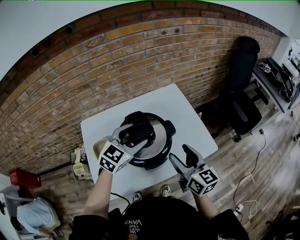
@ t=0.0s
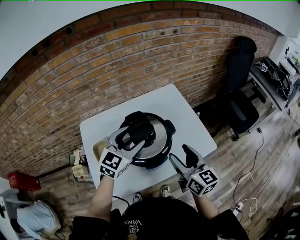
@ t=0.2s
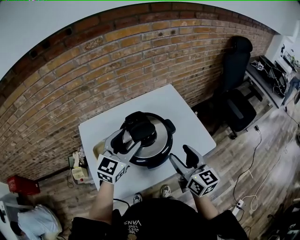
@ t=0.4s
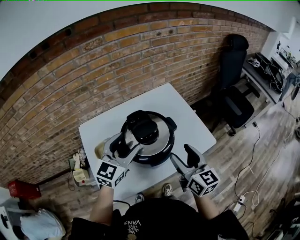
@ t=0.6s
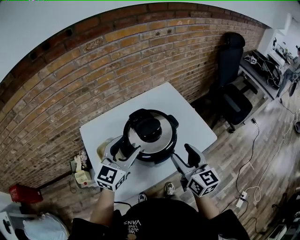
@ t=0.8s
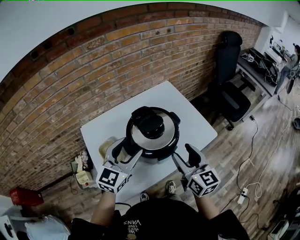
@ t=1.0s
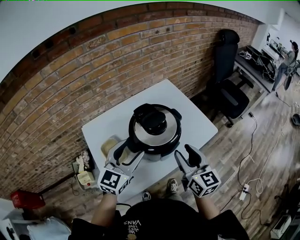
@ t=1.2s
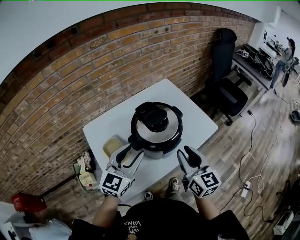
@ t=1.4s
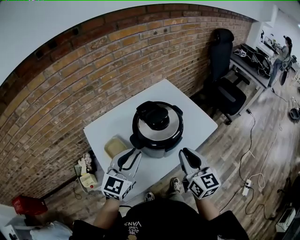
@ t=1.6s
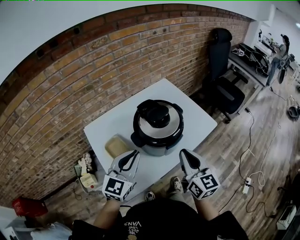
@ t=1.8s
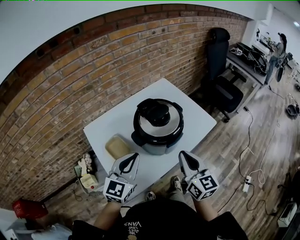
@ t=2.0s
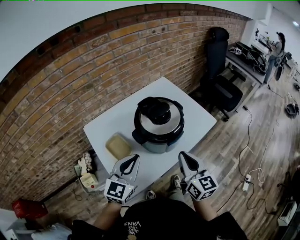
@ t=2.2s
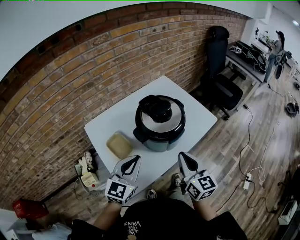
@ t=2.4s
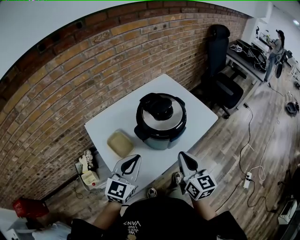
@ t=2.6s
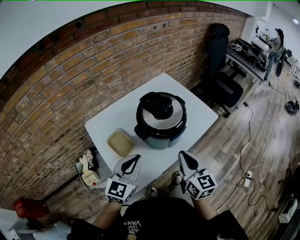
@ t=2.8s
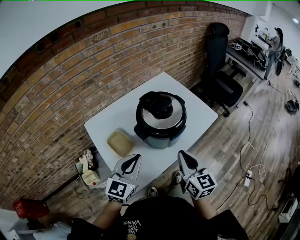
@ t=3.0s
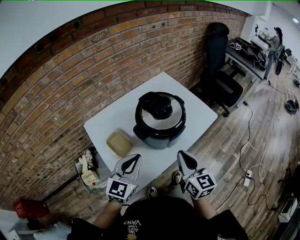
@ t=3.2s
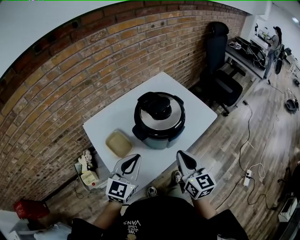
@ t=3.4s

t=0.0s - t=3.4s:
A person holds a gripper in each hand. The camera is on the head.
t=0.0s - t=1.6s: Both grippers move backward and to the left, some 15 cm. The left gripper closes, while the right gripper rotates approximately 20 degrees, and closes.
t=1.6s - t=3.4s: The left gripper ends up roughly 5 cm from where it was. The right gripper ends up roughly 5 cm from where it was.

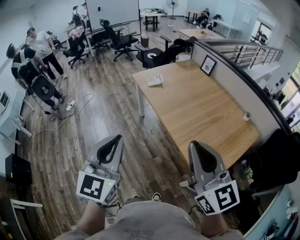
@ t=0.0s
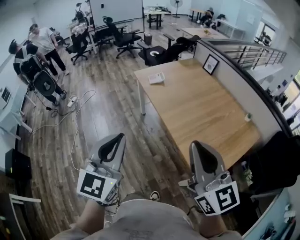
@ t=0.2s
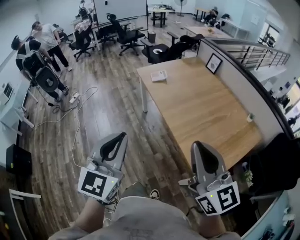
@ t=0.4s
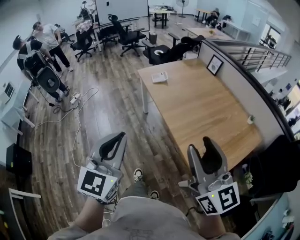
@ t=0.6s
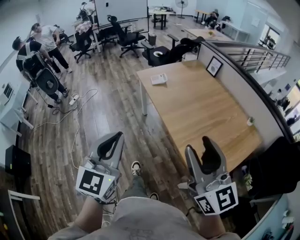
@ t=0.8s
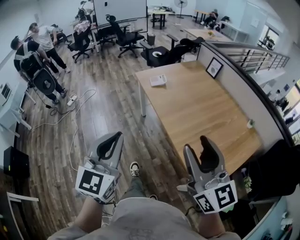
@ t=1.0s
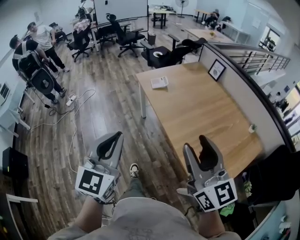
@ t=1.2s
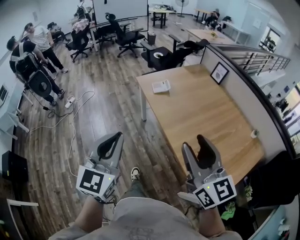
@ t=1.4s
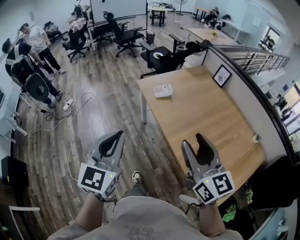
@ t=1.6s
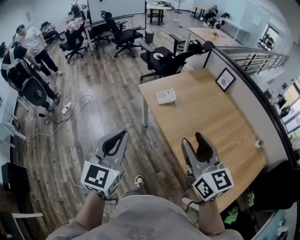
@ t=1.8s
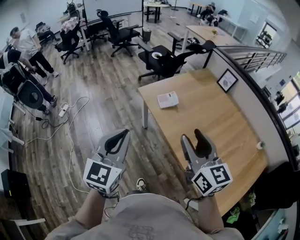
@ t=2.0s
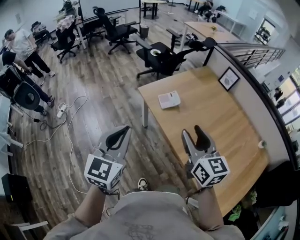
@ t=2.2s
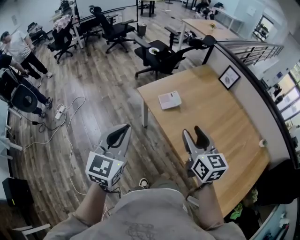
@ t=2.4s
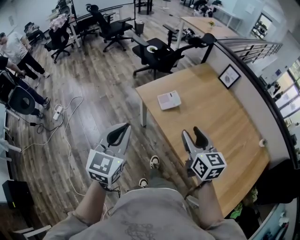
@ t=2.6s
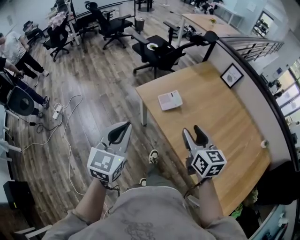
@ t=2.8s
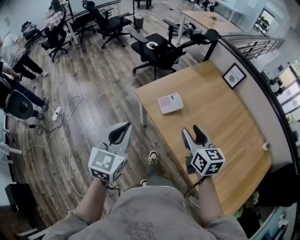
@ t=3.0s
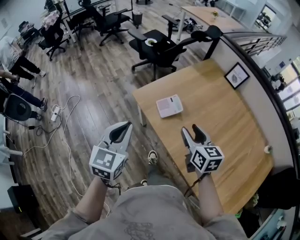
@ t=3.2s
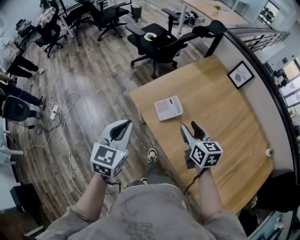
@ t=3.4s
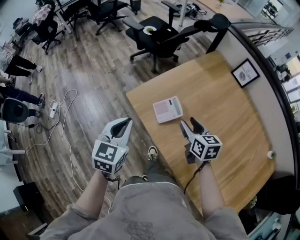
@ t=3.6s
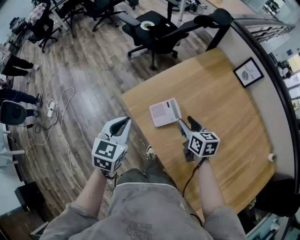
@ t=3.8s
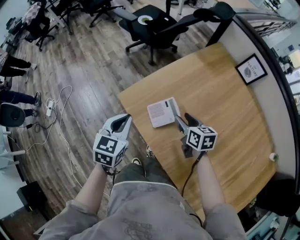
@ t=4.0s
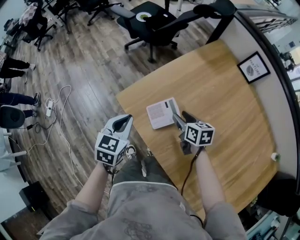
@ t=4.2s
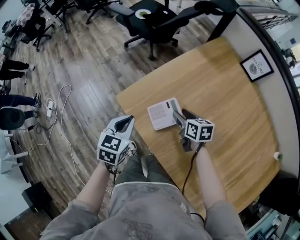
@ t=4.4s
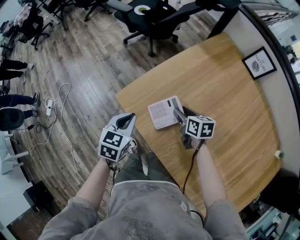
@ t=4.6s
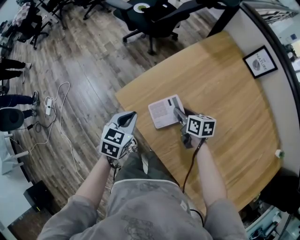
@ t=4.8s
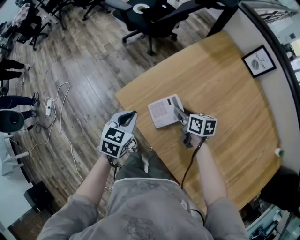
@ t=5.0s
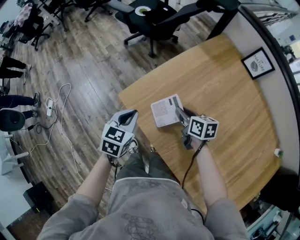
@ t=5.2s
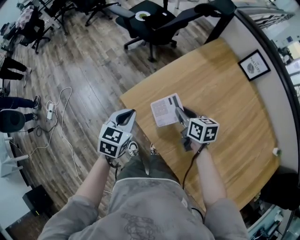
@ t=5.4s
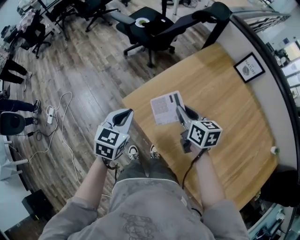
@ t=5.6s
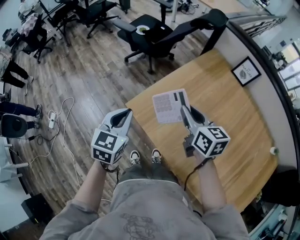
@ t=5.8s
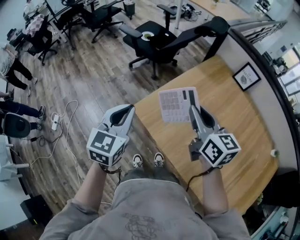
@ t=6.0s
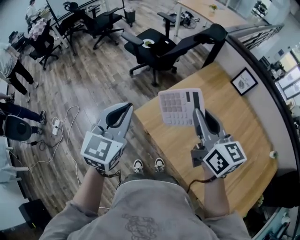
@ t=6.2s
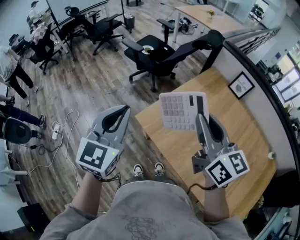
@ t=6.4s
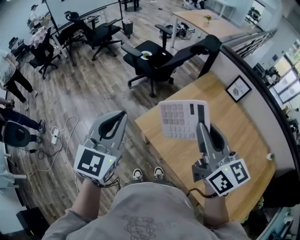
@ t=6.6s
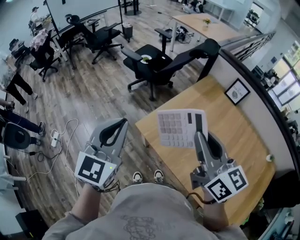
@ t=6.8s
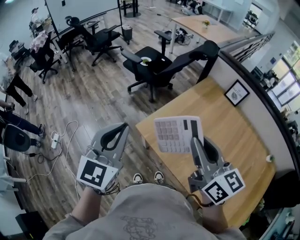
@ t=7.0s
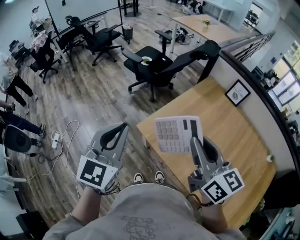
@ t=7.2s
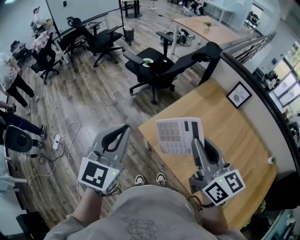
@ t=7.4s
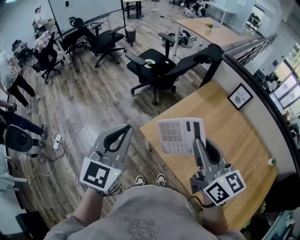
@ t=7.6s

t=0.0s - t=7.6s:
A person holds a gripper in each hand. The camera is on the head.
t=0.0s - t=1.6s: The grippers both shift forward by about 25 cm. The right gripper opens up.
t=1.6s - t=3.0s: The left gripper goes approximately 35 cm forward. The right gripper goes about 35 cm forward and downward, and changes its angle by approximately 30 degrees.
t=3.0s - t=4.6s: The grippers both shift forward and downward by roughly 40 cm. The right gripper rotates about 30 degrees. The left gripper turns by about 30 degrees.
t=4.6s - t=6.0s: Both grippers travel together upward, roughly 25 cm. The right gripper swivels approximately 30 degrees, and closes its fingers; the left gripper rotates about 20 degrees.
t=6.0s - t=7.6s: Both grippers travel together upward and backward, roughly 15 cm.

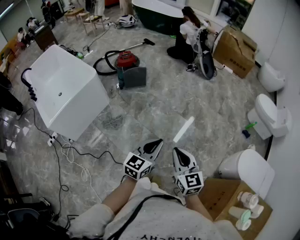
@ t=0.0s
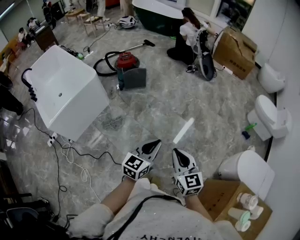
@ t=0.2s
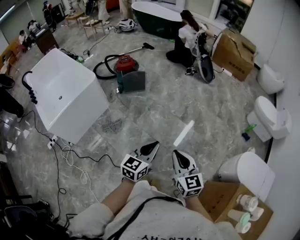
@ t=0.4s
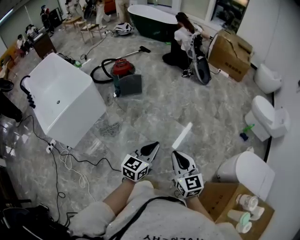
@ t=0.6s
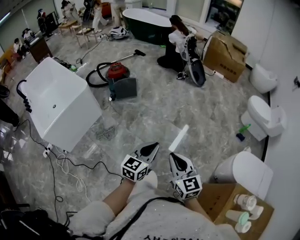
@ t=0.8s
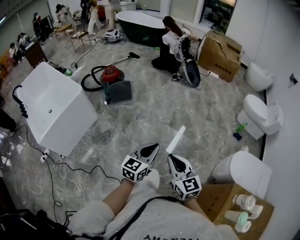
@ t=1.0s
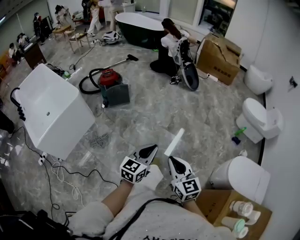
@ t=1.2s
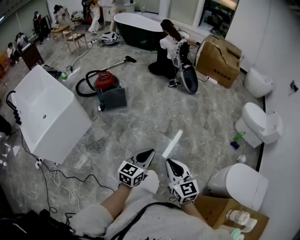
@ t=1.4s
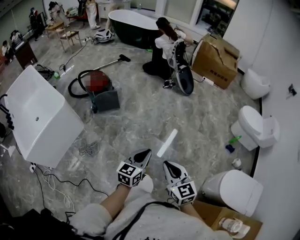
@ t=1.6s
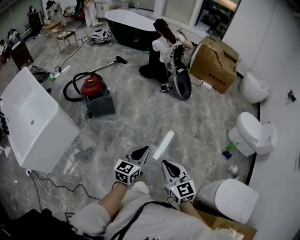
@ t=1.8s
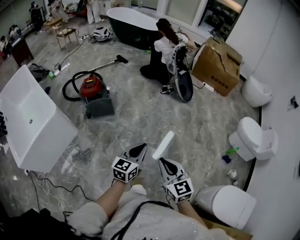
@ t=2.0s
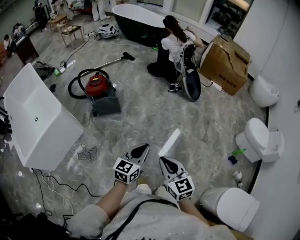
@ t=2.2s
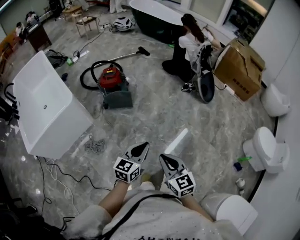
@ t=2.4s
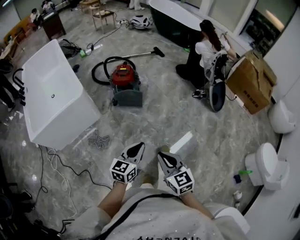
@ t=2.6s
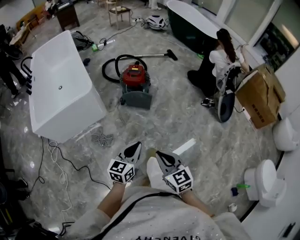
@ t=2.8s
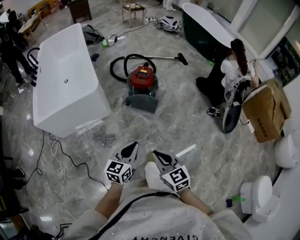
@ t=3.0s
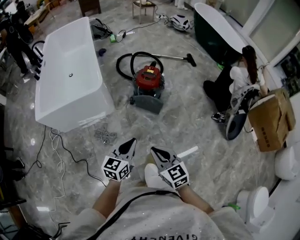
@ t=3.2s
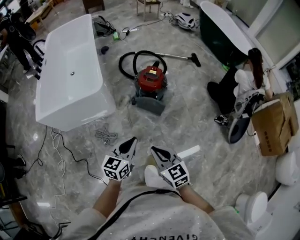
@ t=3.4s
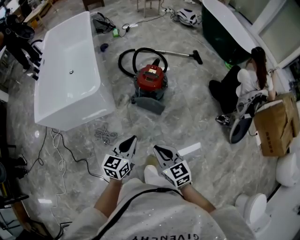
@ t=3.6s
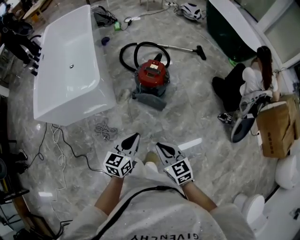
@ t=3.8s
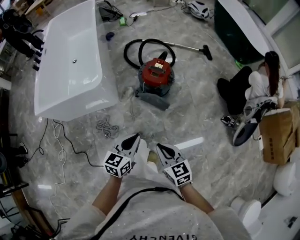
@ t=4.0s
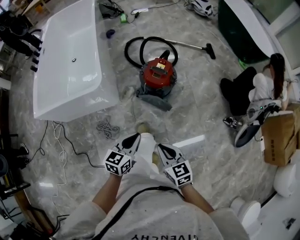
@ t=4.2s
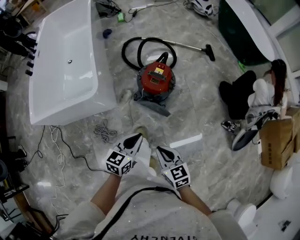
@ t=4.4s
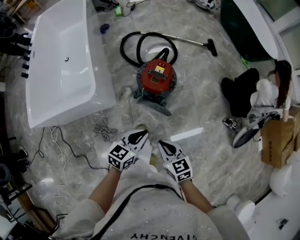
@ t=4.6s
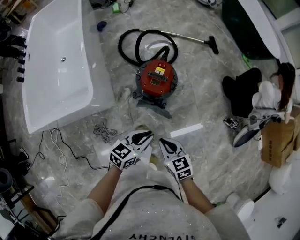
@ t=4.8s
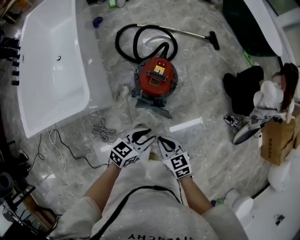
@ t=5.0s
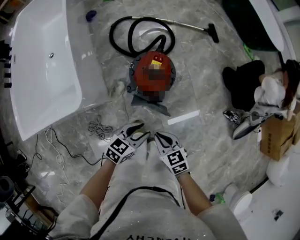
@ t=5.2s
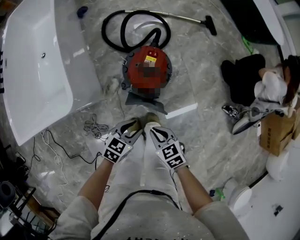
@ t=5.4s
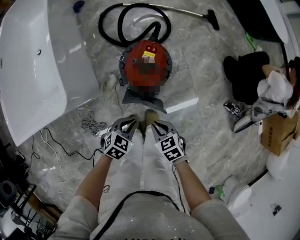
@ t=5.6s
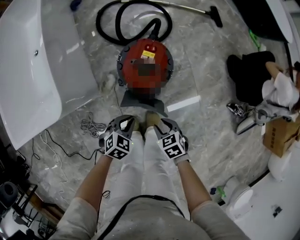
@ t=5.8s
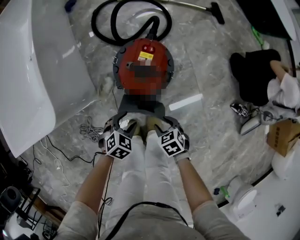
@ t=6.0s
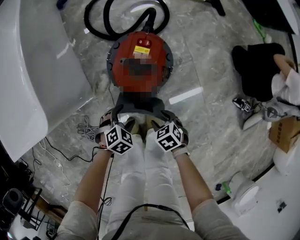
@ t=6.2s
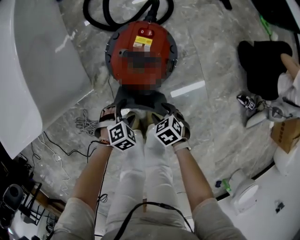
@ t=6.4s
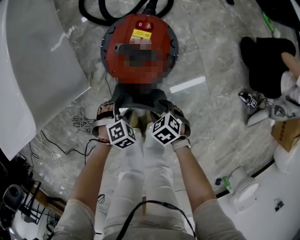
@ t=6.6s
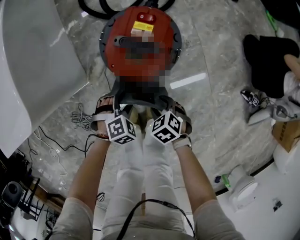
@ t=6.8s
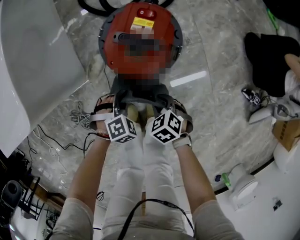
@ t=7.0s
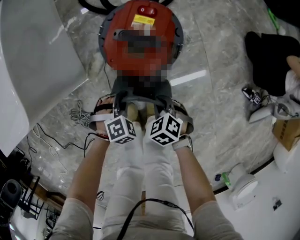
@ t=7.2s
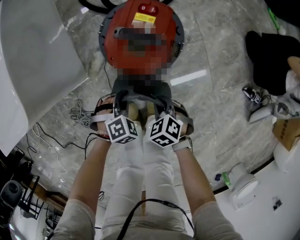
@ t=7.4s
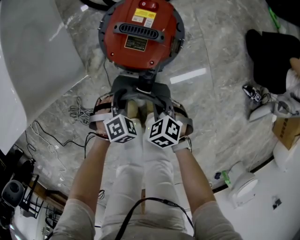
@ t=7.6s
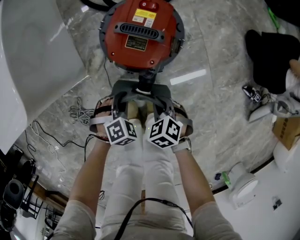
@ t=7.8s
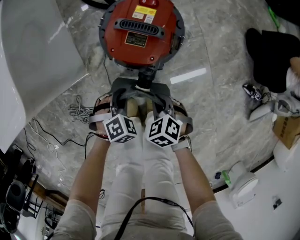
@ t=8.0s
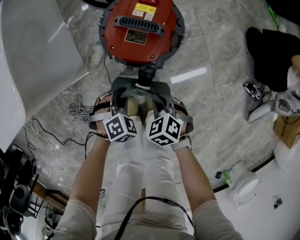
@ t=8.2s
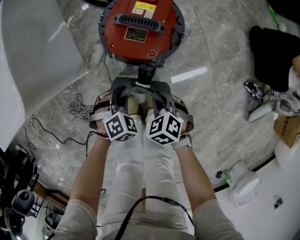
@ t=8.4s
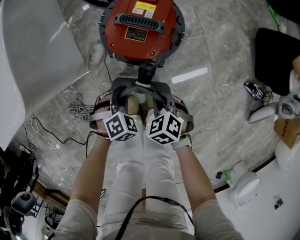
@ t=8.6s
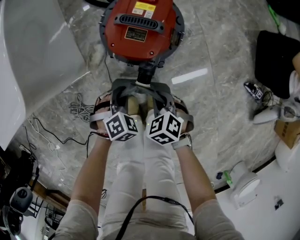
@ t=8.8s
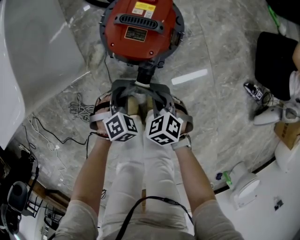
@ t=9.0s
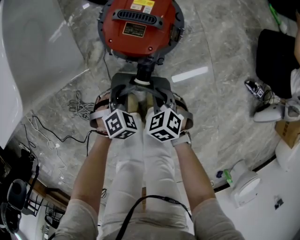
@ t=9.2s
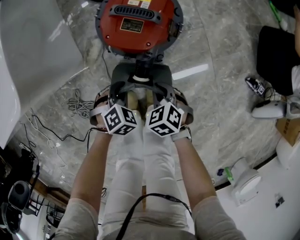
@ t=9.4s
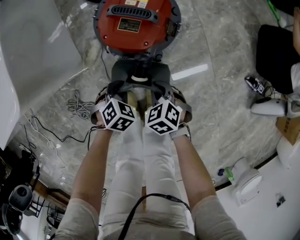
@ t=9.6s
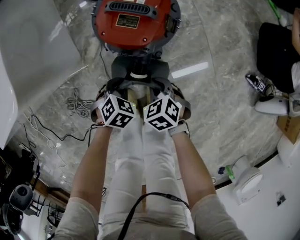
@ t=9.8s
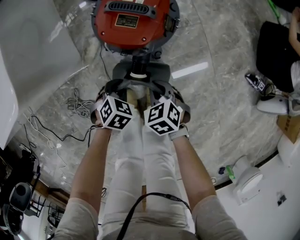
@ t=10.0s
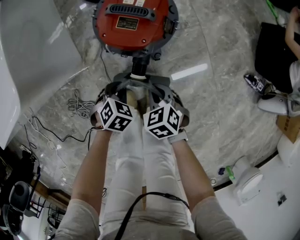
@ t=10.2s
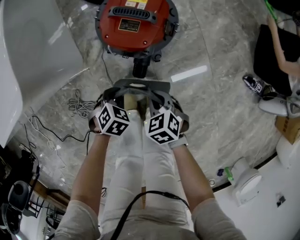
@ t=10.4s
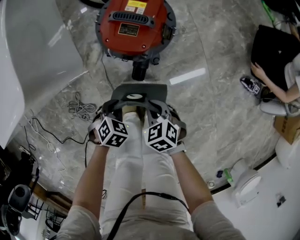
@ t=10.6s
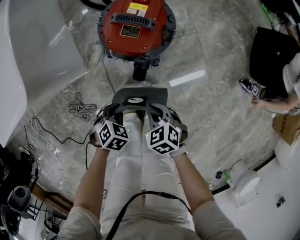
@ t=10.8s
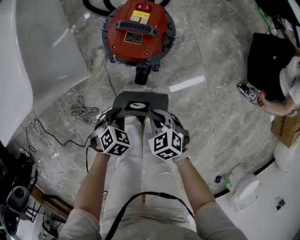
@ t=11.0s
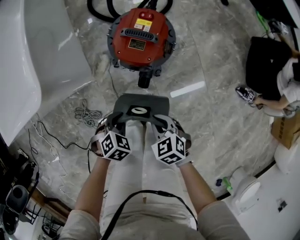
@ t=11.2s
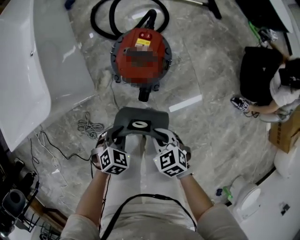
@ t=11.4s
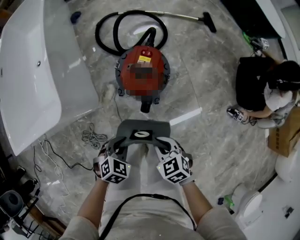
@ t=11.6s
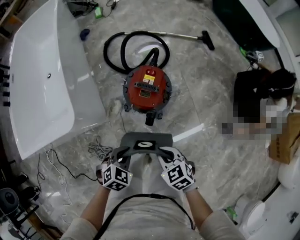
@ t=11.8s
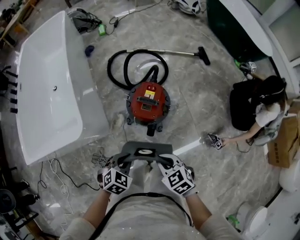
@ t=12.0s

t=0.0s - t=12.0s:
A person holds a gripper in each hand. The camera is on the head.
t=0.0s - t=1.6s: Both grippers move forward and to the right, roughly 20 cm.
t=1.6s - t=3.0s: The left gripper ends up some 30 cm from where it was, and rotates about 40 degrees. Meanwhile the right gripper moves some 35 cm, and rotates about 40 degrees.
t=3.0s - t=4.4s: Both grippers travel together forward, approximately 25 cm.
t=4.4s - t=6.0s: Both grippers move downward and forward, approximately 35 cm. The left gripper tilts its fingers some 40 degrees downward, and opens its fingers. Meanwhile the right gripper tips its fingers downward by approximately 30 degrees, and opens.
t=6.0s - t=7.6s: The two grippers go roughly 10 cm downward. The left gripper changes its angle by some 30 degrees, and closes up; the right gripper changes its angle by about 20 degrees, and closes.
t=7.6s - t=9.0s: The grippers move only a little.
t=9.0s - t=10.4s: The left gripper changes its angle by approximately 20 degrees.
t=10.4s - t=12.0s: Both grippers move upward, roughly 25 cm. The left gripper rotates about 20 degrees.
